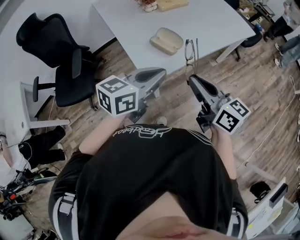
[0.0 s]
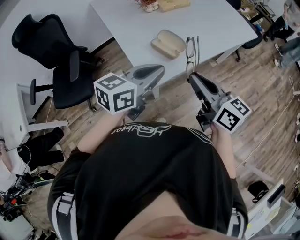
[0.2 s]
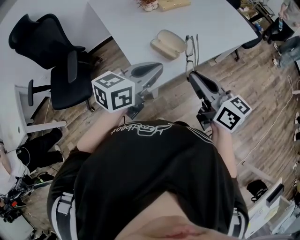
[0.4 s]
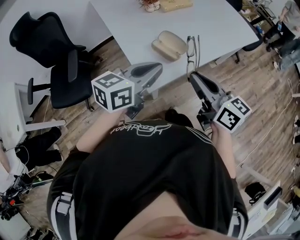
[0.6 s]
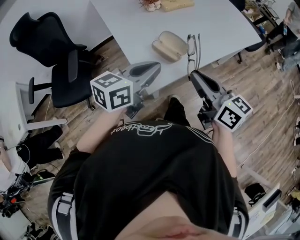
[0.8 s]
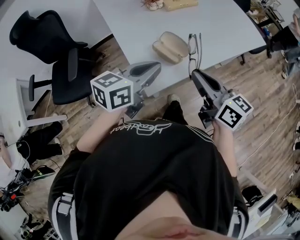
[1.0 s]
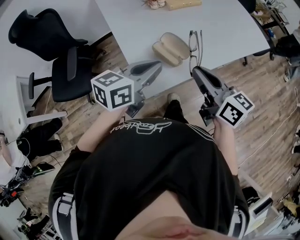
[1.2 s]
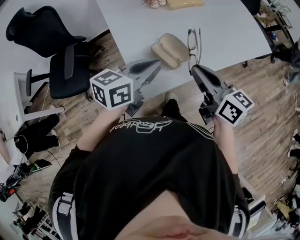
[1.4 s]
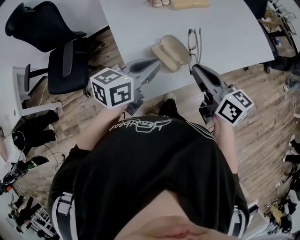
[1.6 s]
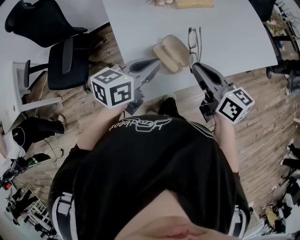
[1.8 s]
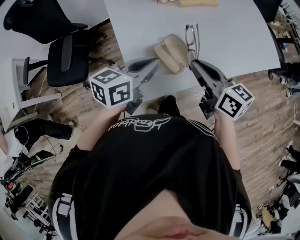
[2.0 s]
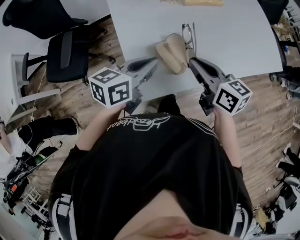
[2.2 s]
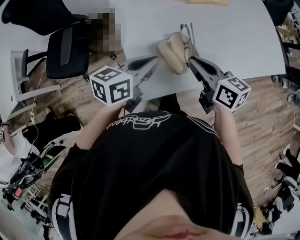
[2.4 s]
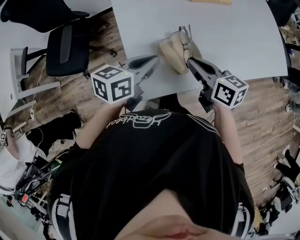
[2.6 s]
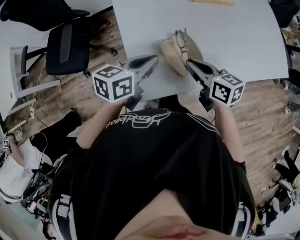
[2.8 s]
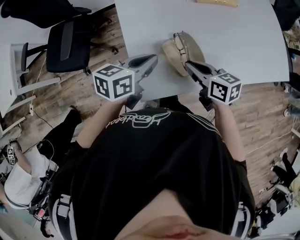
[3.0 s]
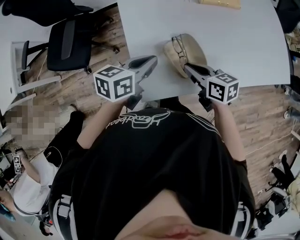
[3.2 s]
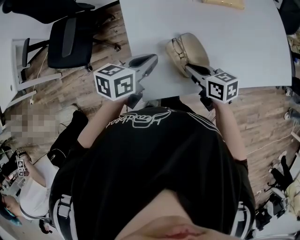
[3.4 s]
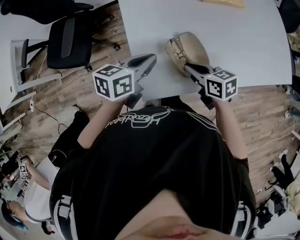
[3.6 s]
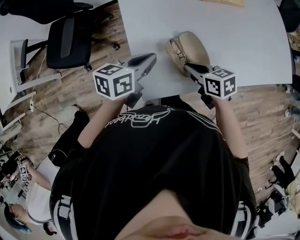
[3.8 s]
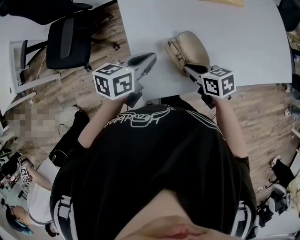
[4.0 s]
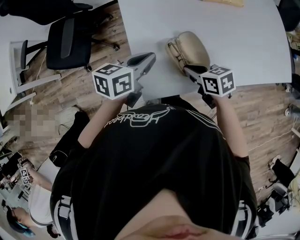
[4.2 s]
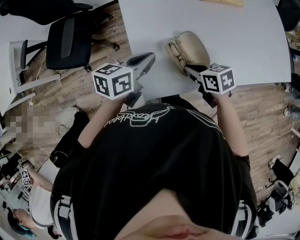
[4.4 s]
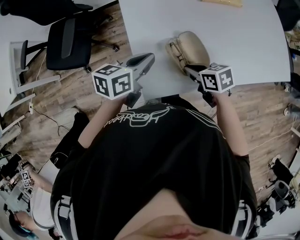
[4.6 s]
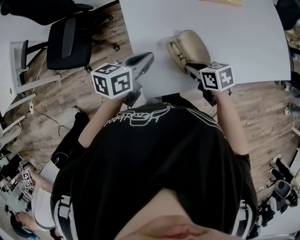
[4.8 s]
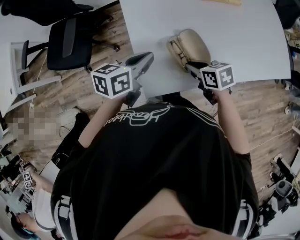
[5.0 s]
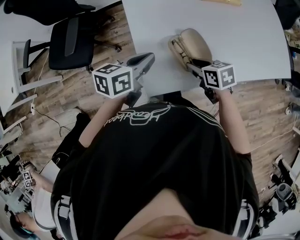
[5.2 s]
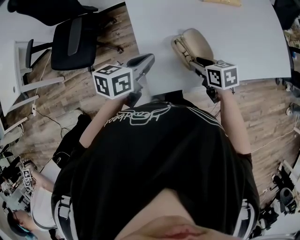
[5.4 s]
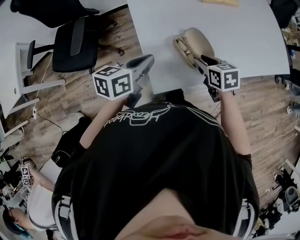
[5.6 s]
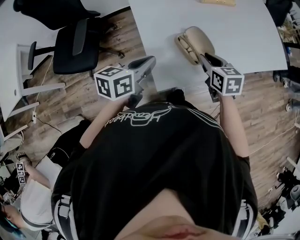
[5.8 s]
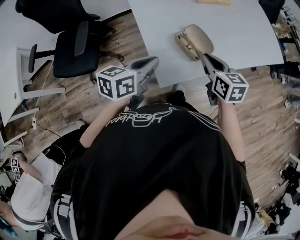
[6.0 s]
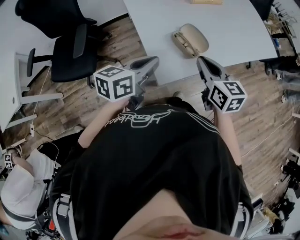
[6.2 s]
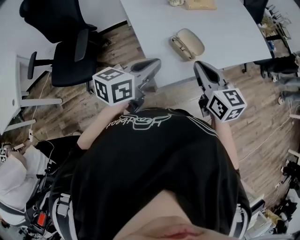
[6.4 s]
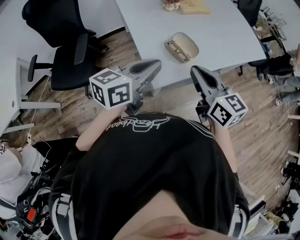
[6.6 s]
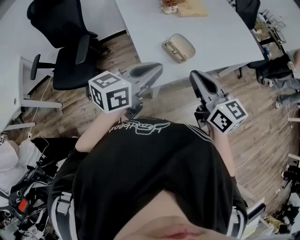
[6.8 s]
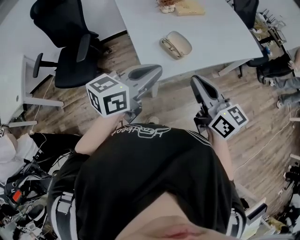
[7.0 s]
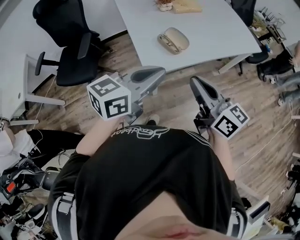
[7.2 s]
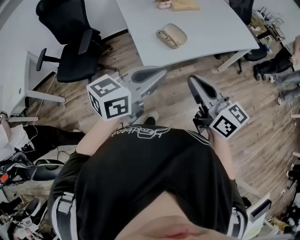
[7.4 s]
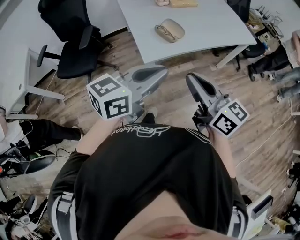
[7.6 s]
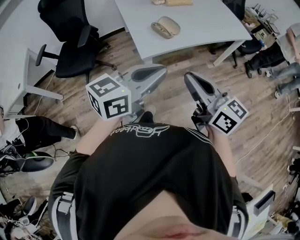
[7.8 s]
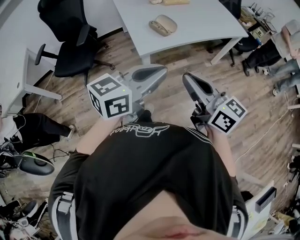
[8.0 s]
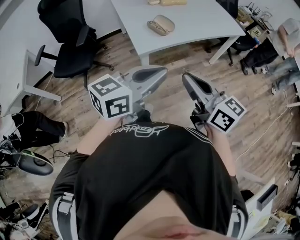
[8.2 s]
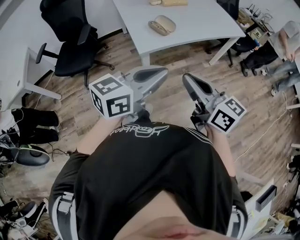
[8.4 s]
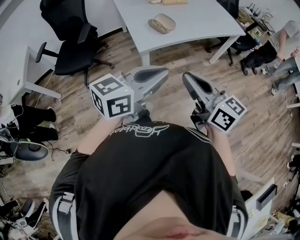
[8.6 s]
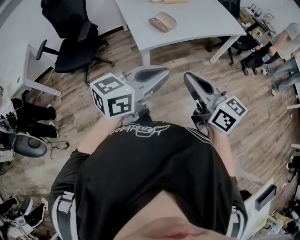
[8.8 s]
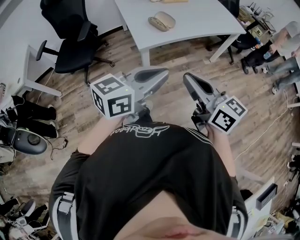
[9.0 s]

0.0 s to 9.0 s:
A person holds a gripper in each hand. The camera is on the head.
0.0 to 1.6 s: Both grippers travel together forward, about 20 cm.
1.6 to 3.0 s: The left gripper shifts about 10 cm downward and forward; the right gripper heads downward and forward, covering about 15 cm, and rotates roughly 30 degrees.
3.0 to 4.4 s: The right gripper travels downward by roughly 5 cm, and turns by about 20 degrees.
4.4 to 6.0 s: The right gripper shifts roughly 10 cm upward, turns by about 40 degrees, and opens and closes again, while the left gripper shifts by approximately 10 cm.
6.0 to 7.6 s: The left gripper moves backward, to the right and upward, about 35 cm, and swivels some 30 degrees. The right gripper travels backward and upward by some 35 cm, and angles its fingers upward, by some 30 degrees.
7.6 to 9.0 s: Both grippers travel together backward, some 10 cm.

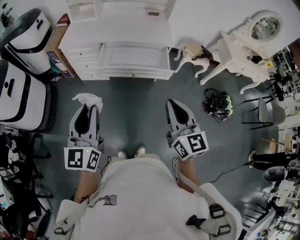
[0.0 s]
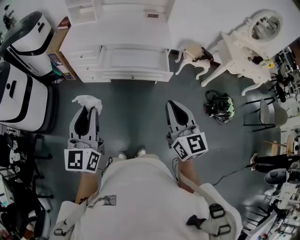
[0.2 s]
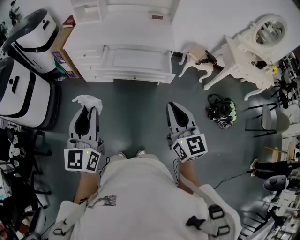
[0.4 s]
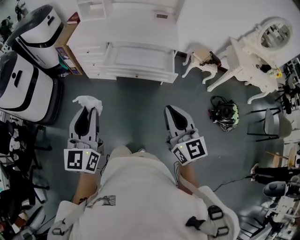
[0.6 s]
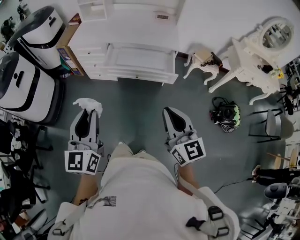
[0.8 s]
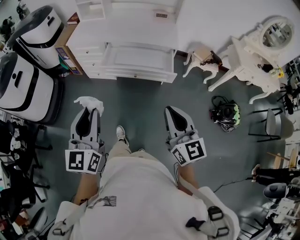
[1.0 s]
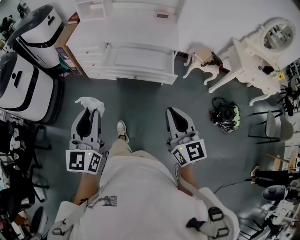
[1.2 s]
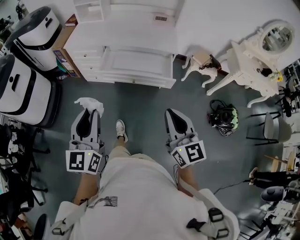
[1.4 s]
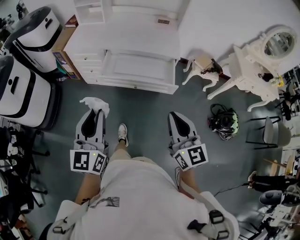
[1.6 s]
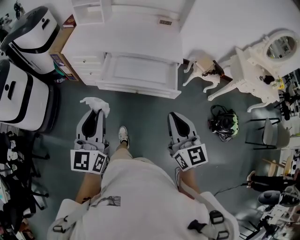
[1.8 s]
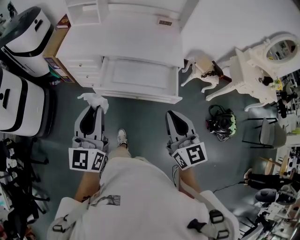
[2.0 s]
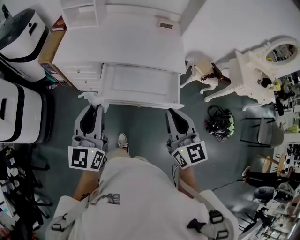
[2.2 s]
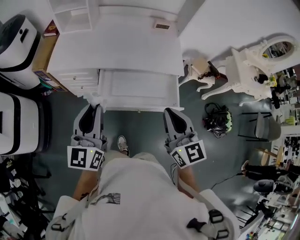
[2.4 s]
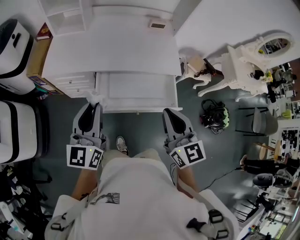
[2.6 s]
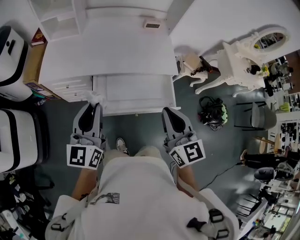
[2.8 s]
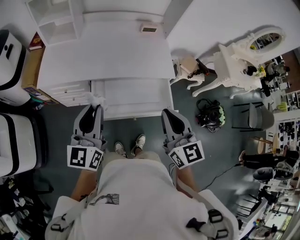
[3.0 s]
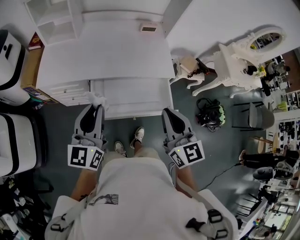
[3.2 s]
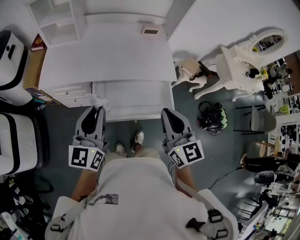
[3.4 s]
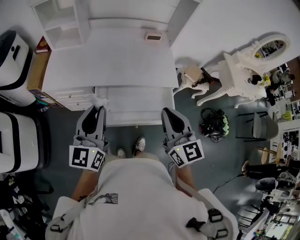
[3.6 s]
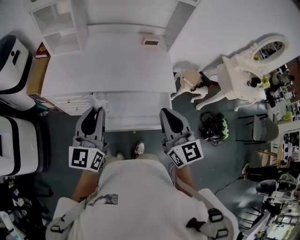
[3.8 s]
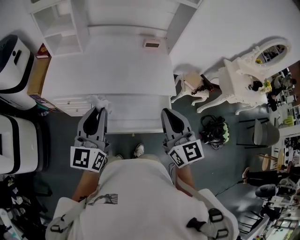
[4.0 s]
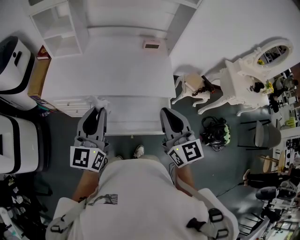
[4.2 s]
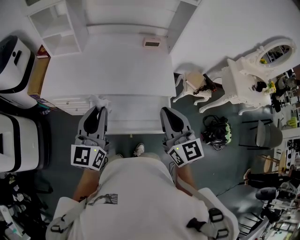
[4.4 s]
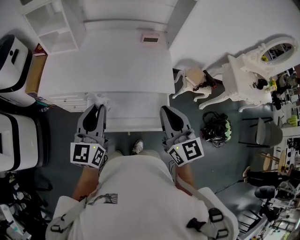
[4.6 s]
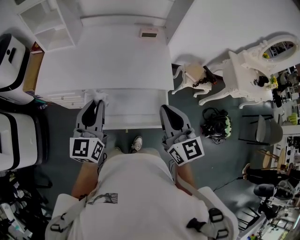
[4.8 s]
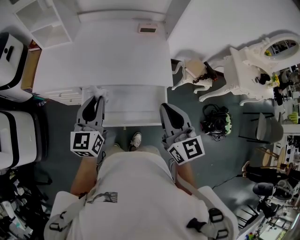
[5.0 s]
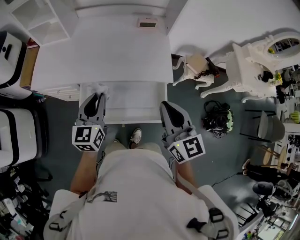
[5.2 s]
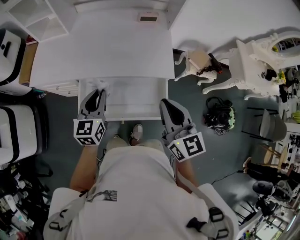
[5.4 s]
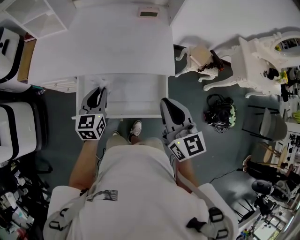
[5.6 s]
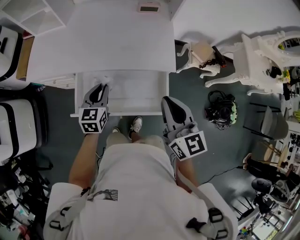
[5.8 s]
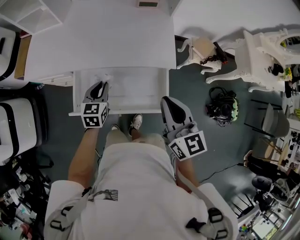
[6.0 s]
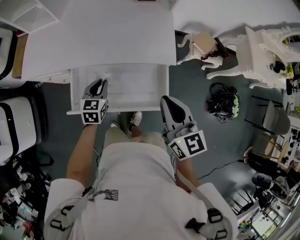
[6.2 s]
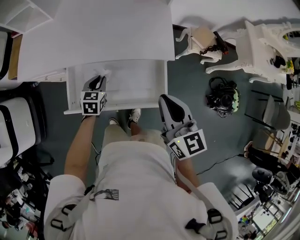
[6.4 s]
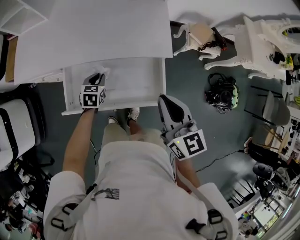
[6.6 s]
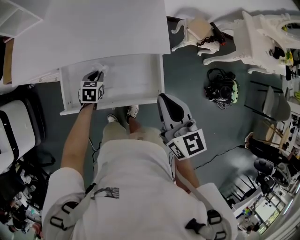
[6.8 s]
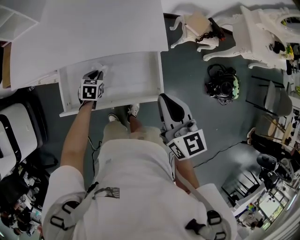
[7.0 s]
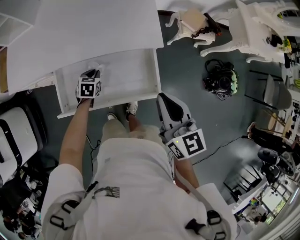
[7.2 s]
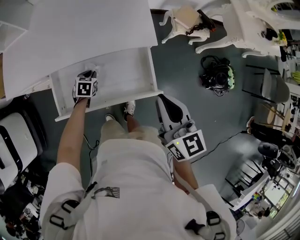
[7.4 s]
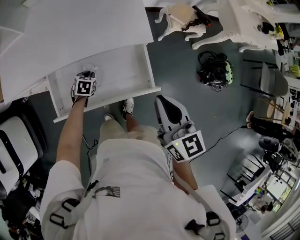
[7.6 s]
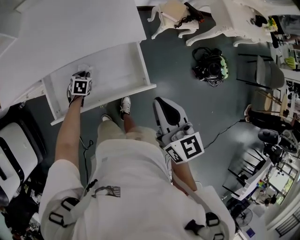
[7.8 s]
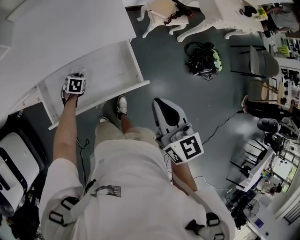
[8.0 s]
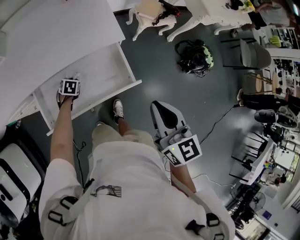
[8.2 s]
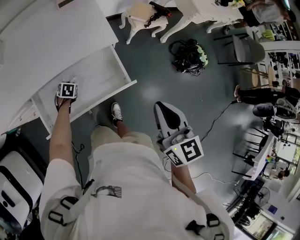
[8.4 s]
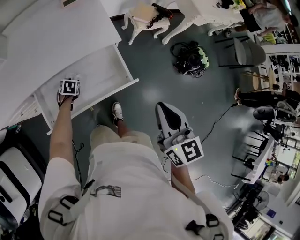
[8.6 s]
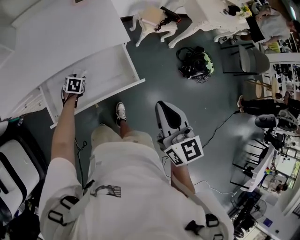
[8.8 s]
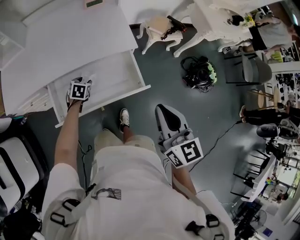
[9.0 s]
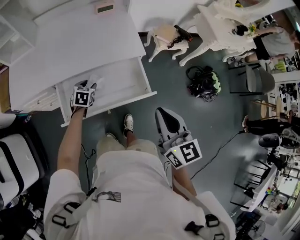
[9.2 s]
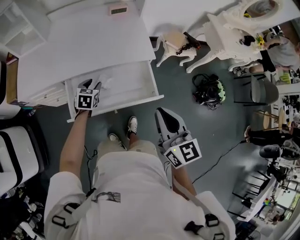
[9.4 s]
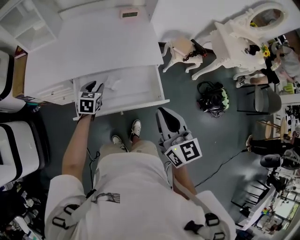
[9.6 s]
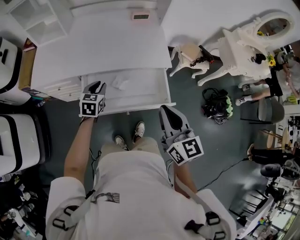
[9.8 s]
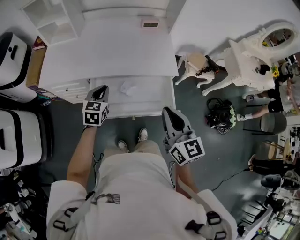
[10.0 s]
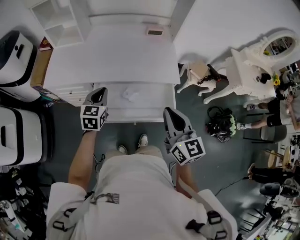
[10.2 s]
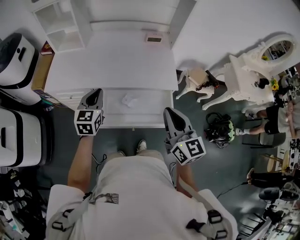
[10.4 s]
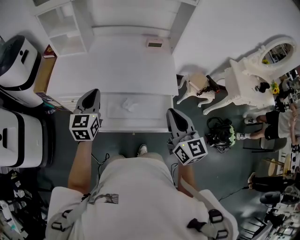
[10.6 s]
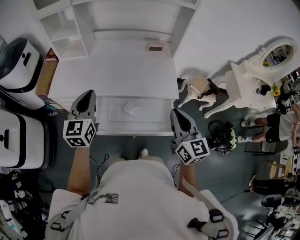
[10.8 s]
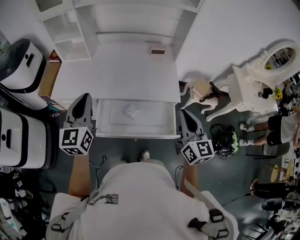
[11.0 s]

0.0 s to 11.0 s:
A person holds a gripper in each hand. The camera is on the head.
0.0 to 1.6 s: The grippers both shift to the right and forward by about 10 cm.
1.6 to 3.2 s: Both grippers travel together forward, approximately 35 cm.
3.2 to 4.8 s: The left gripper moves to the right and forward, about 15 cm. Meanwhile the right gripper moves forward and to the right, approximately 15 cm.
4.8 to 6.2 s: The left gripper is displaced downward by about 25 cm, and angles its fingers downward, by some 30 degrees, while the right gripper travels downward and to the right by roughly 10 cm.
6.2 to 7.8 s: The left gripper moves downward, some 20 cm, and changes its angle by approximately 30 degrees; the right gripper is displaced backward and to the right by some 10 cm.
7.8 to 9.4 s: The left gripper heads upward, covering approximately 20 cm, and opens up; the right gripper is displaced backward, upward and to the left by about 10 cm.
9.4 to 11.0 s: The left gripper goes about 35 cm upward, tilts its fingers approximately 40 degrees upward, and closes up, while the right gripper is displaced forward and upward by approximately 10 cm.

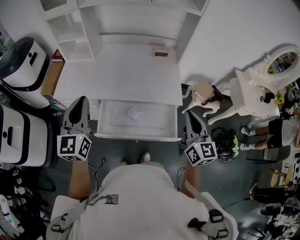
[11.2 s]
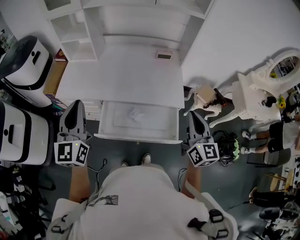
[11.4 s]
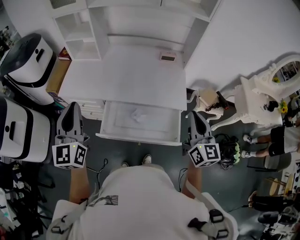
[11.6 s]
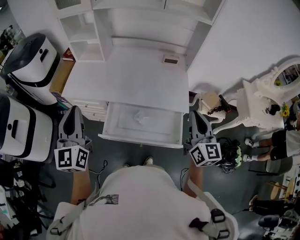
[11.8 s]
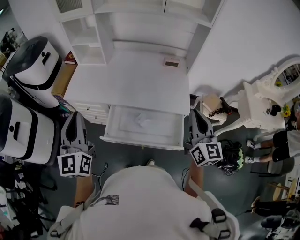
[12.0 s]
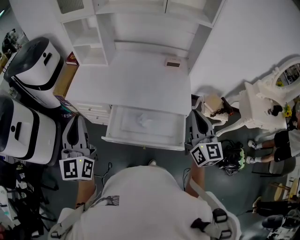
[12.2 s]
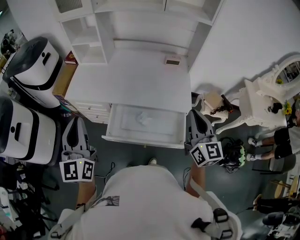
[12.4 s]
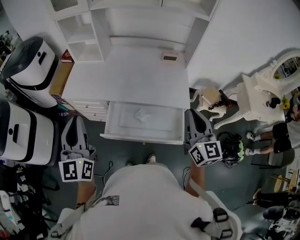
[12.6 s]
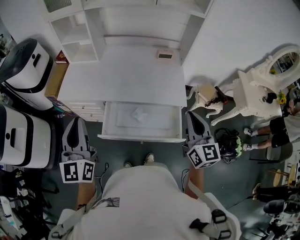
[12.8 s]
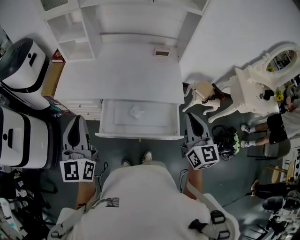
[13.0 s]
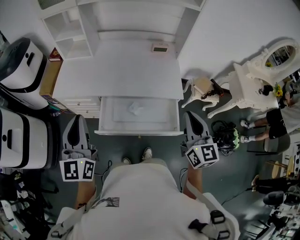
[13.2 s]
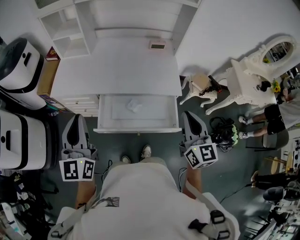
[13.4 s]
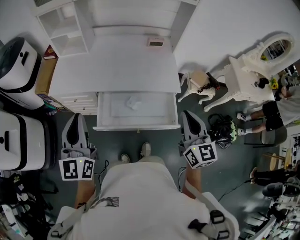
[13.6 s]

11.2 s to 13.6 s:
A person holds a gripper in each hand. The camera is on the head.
11.2 to 12.4 s: The left gripper heads backward and to the left, covering roughly 10 cm.
12.4 to 13.6 s: The right gripper moves backward, about 5 cm.

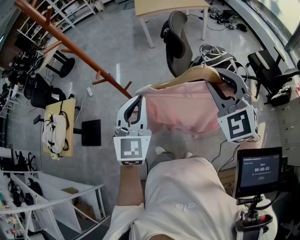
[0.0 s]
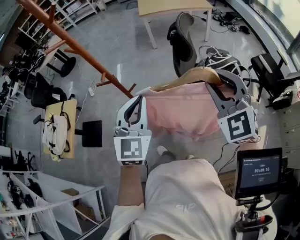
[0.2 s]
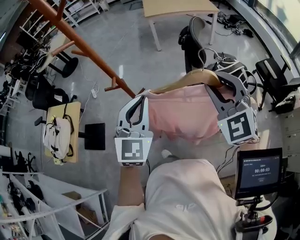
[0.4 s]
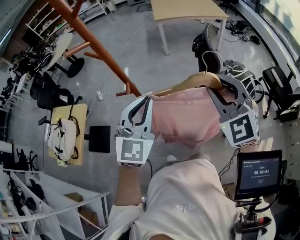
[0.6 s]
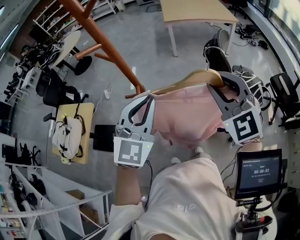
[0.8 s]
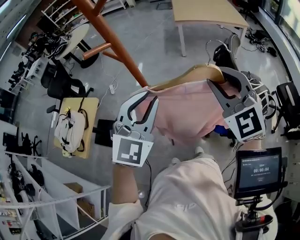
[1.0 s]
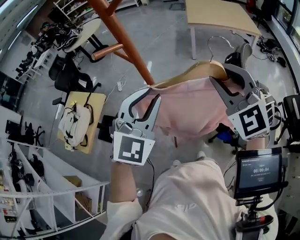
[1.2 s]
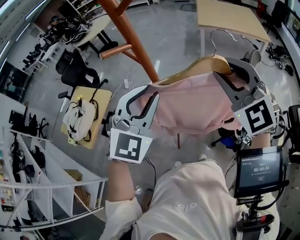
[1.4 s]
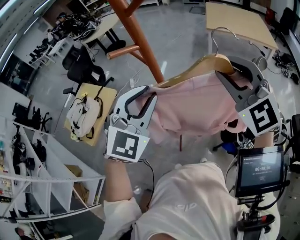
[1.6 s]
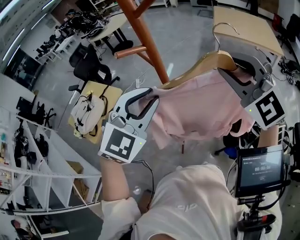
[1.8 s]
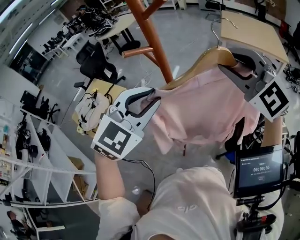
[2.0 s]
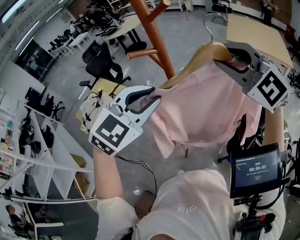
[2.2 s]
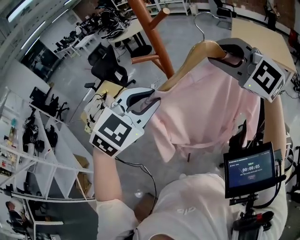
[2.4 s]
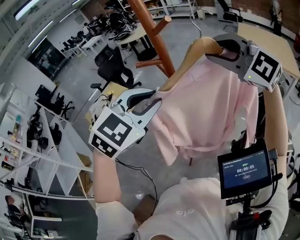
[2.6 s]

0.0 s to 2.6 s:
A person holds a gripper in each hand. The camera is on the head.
0.0 to 1.2 s: The right gripper heads to the left and forward, covering some 30 cm, and swivels roughly 20 degrees, while the left gripper is displaced to the left, forward and upward by about 25 cm.
1.2 to 2.6 s: The right gripper ends up some 15 cm from where it was, and changes its angle by some 40 degrees; the left gripper is displaced upward by roughly 10 cm, and rotates about 20 degrees.
